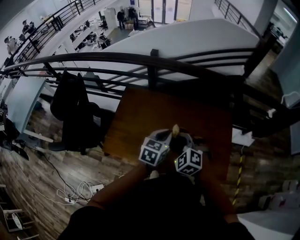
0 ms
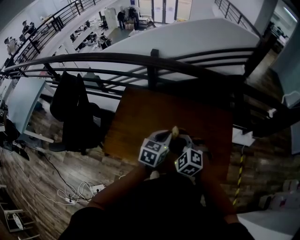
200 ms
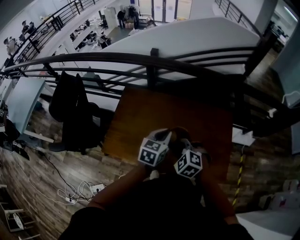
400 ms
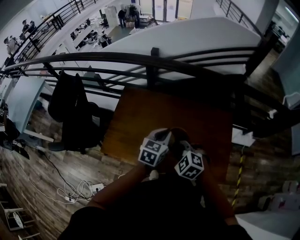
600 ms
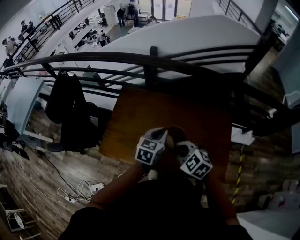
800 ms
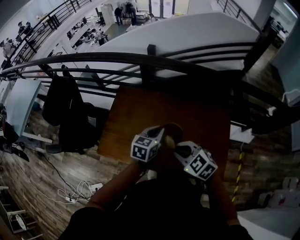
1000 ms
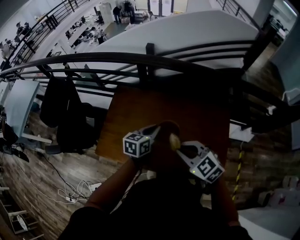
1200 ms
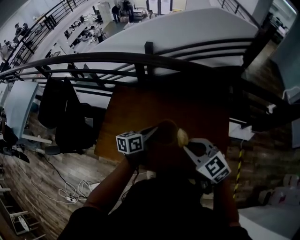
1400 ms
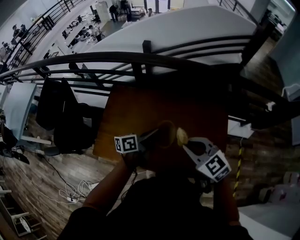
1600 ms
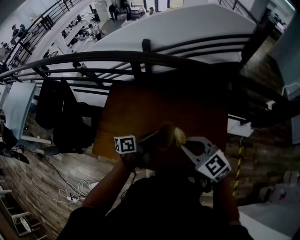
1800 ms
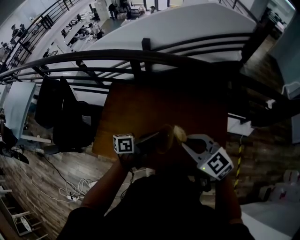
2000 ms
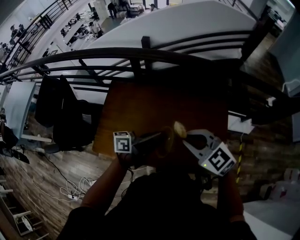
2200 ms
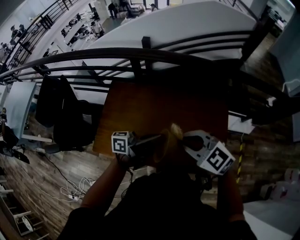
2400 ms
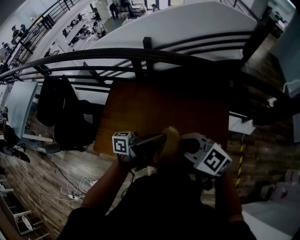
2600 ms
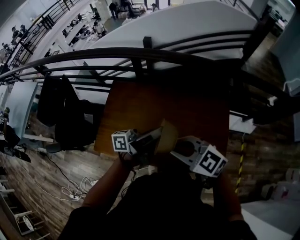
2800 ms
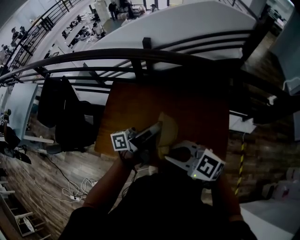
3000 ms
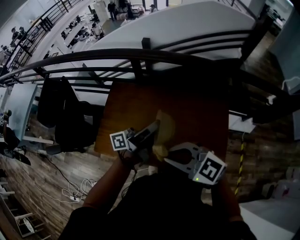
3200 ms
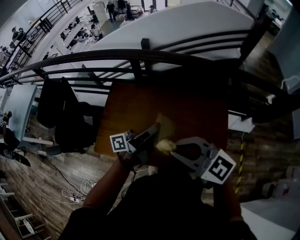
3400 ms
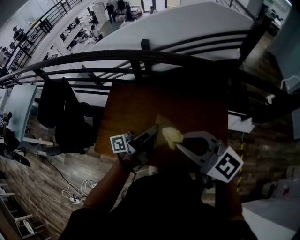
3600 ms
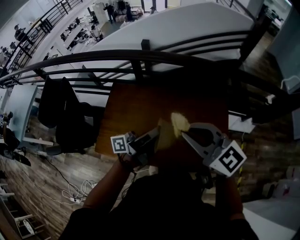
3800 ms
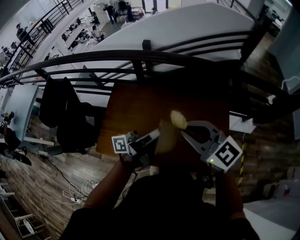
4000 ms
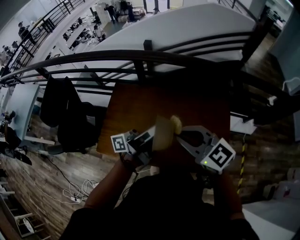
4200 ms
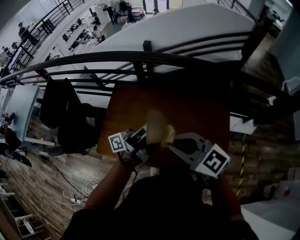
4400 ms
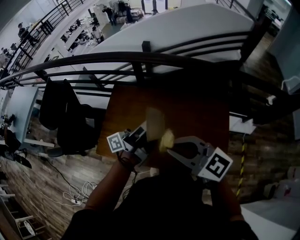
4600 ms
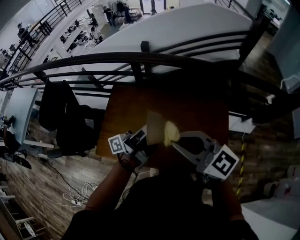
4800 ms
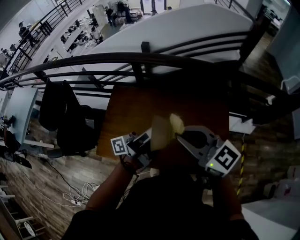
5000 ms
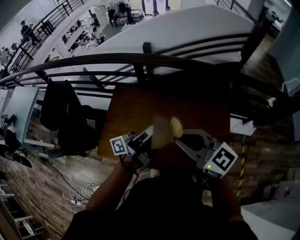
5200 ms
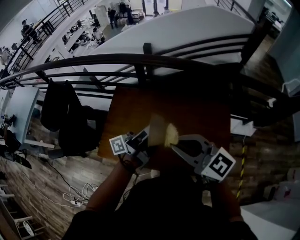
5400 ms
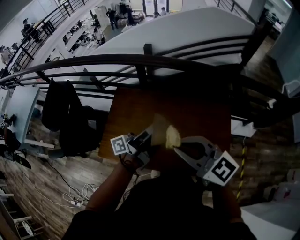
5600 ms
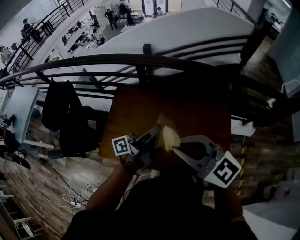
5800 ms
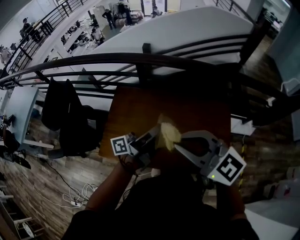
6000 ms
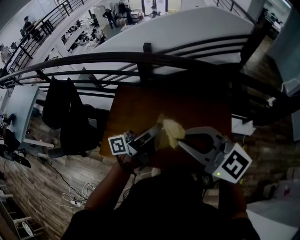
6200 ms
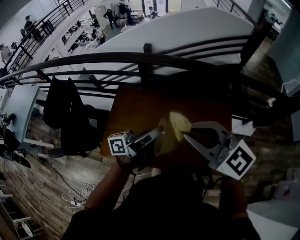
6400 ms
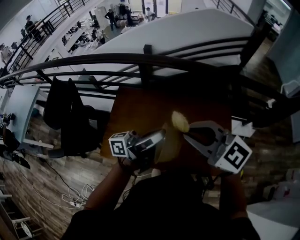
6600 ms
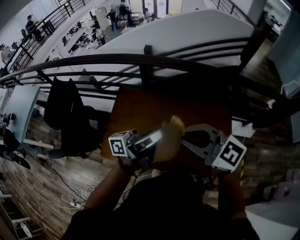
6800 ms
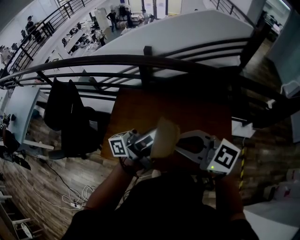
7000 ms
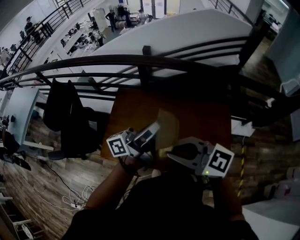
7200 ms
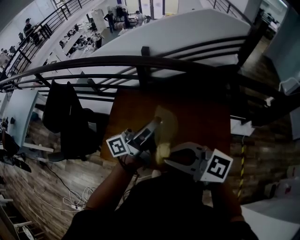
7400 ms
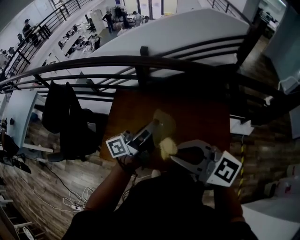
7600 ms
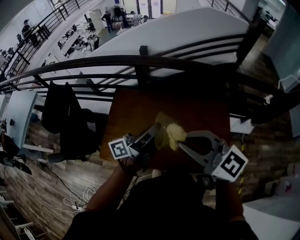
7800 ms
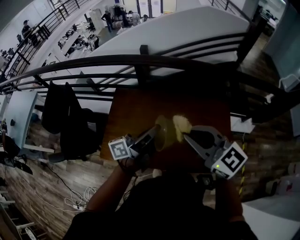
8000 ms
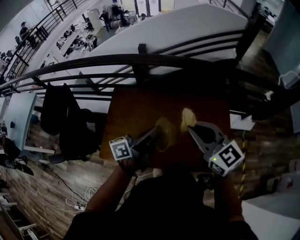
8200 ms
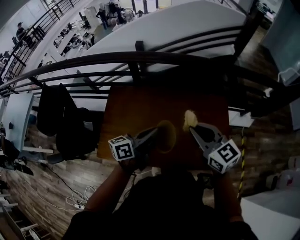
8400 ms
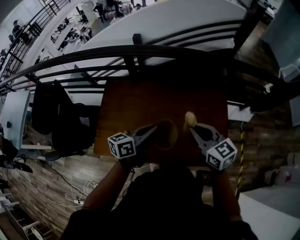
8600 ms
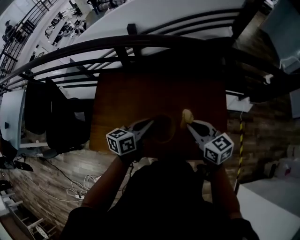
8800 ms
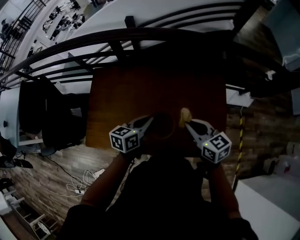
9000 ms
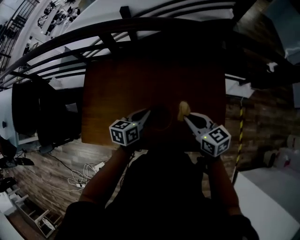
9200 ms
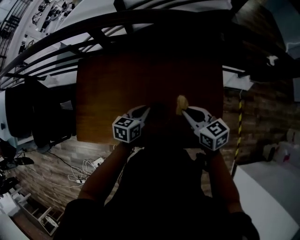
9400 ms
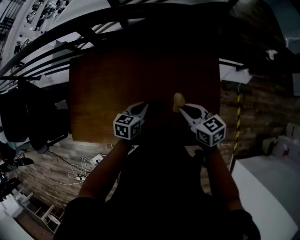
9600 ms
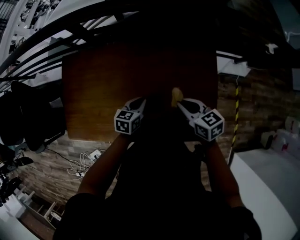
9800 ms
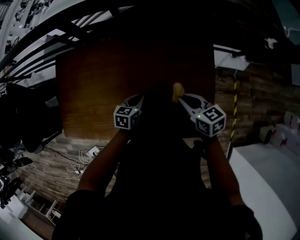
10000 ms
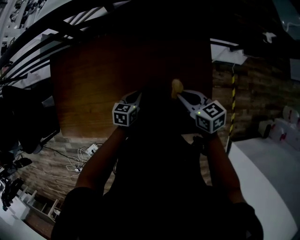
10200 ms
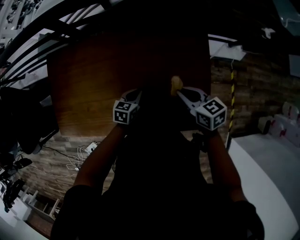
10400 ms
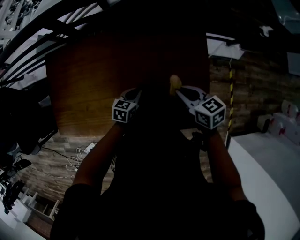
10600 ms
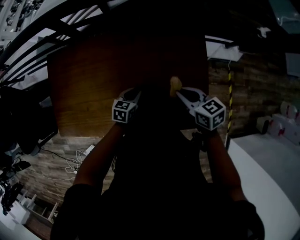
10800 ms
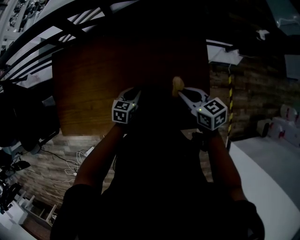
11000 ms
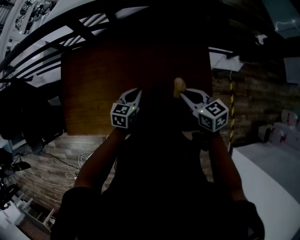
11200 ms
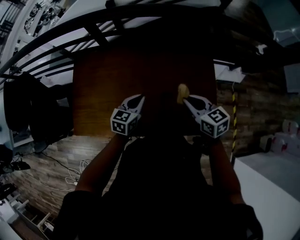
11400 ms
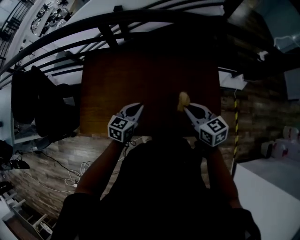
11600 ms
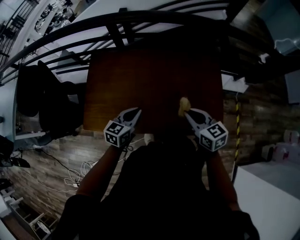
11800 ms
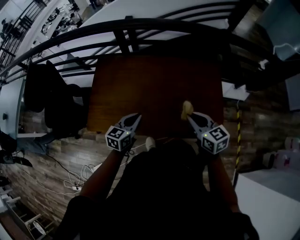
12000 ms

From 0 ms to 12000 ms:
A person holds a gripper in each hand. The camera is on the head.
From 0 ms to 1600 ms: The left gripper travels forward by some 5 cm, and rolls counterclockwise, seen from behind, by some 40 degrees, while the right gripper shifts about 15 cm to the right and upward, and swivels some 30 degrees.
From 1600 ms to 3000 ms: The left gripper is displaced upward by approximately 10 cm, and points its fingers roughly 30 degrees further upward. The right gripper changes place by roughly 10 cm, and turns by roughly 20 degrees.
From 4400 ms to 6000 ms: The right gripper moves upward, some 10 cm.
From 6000 ms to 7600 ms: The left gripper travels upward and back again, approximately 10 cm each way.
From 7600 ms to 9000 ms: The left gripper heads downward and to the right, covering roughly 25 cm, and points its fingers roughly 50 degrees further downward; the right gripper heads downward, to the right and forward, covering some 30 cm, and swivels roughly 40 degrees.
From 9000 ms to 10400 ms: The right gripper moves to the right and downward, some 20 cm, while the left gripper heads downward and to the right, covering some 30 cm, and changes its angle by approximately 20 degrees.
From 10400 ms to 12000 ms: The right gripper heads backward, to the left and upward, covering approximately 25 cm. Meanwhile the left gripper goes some 35 cm upward, to the left and backward, and changes its angle by roughly 20 degrees.

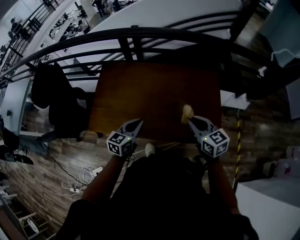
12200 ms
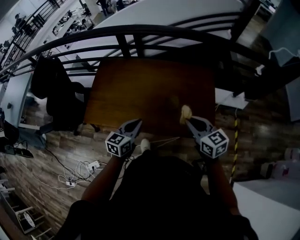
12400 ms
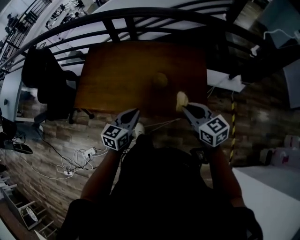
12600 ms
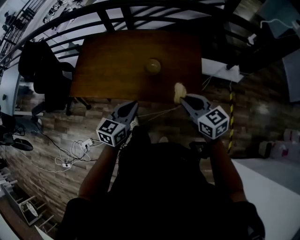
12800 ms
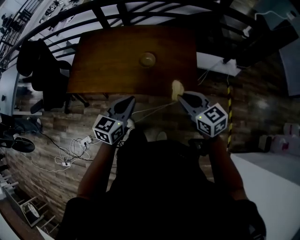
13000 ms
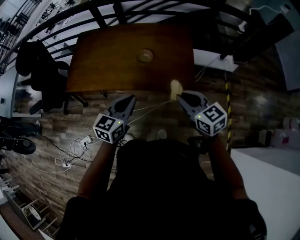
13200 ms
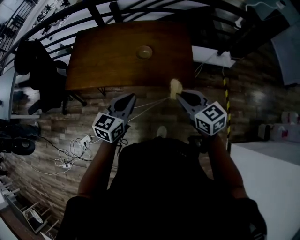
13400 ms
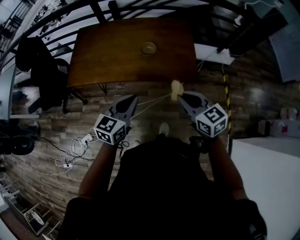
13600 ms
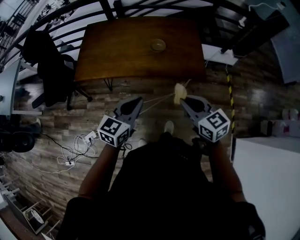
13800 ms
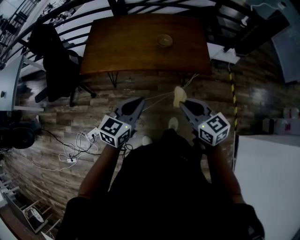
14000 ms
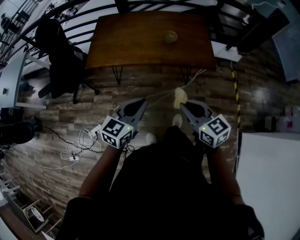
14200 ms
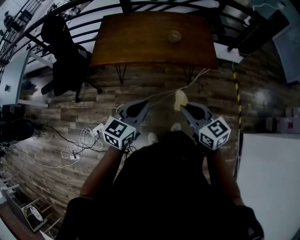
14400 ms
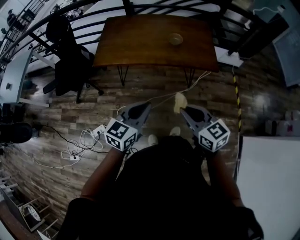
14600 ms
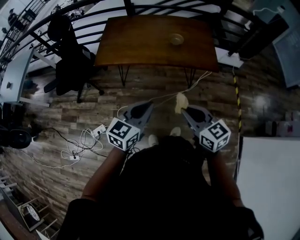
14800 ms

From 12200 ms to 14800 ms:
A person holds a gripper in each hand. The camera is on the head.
From 12200 ms to 13400 ms: Both grippers move backward and to the right, about 30 cm.
From 13400 ms to 14800 ms: Both grippers travel together backward and to the left, about 35 cm.

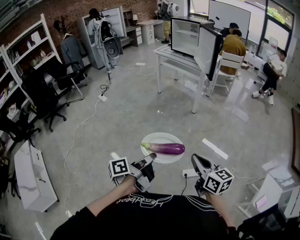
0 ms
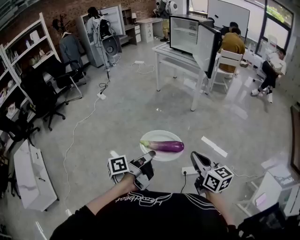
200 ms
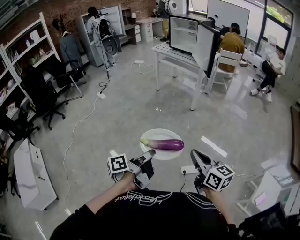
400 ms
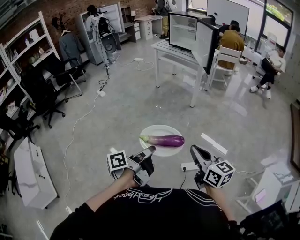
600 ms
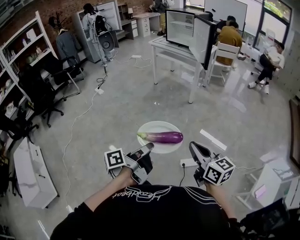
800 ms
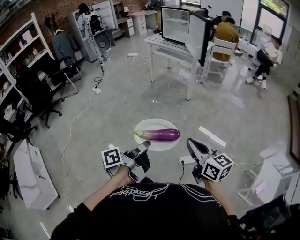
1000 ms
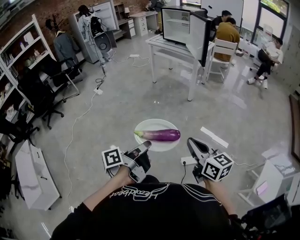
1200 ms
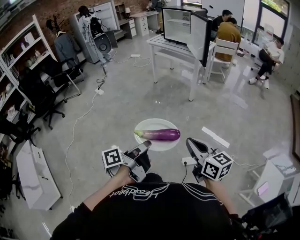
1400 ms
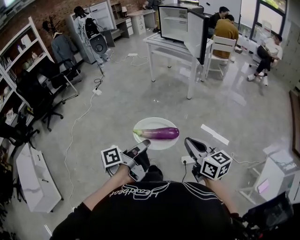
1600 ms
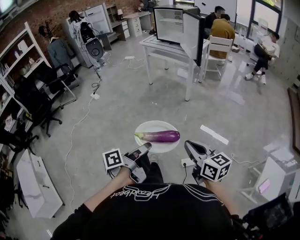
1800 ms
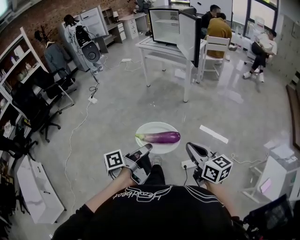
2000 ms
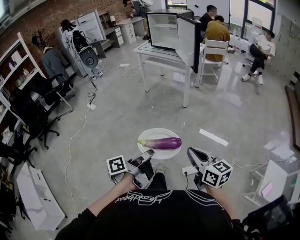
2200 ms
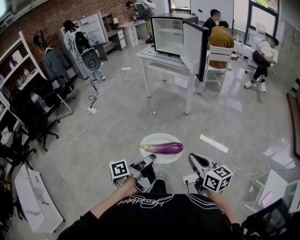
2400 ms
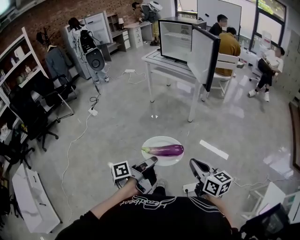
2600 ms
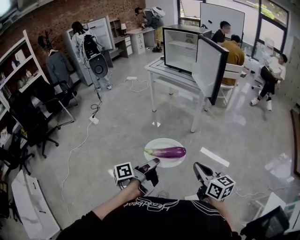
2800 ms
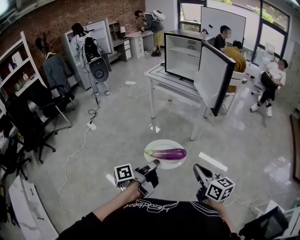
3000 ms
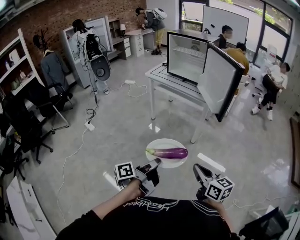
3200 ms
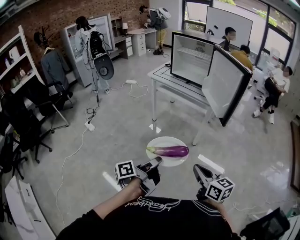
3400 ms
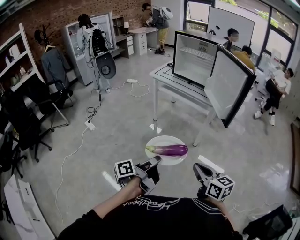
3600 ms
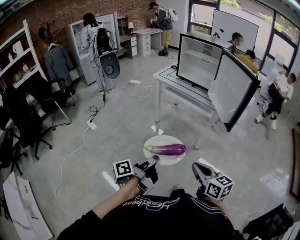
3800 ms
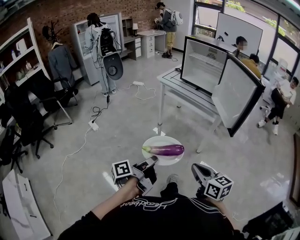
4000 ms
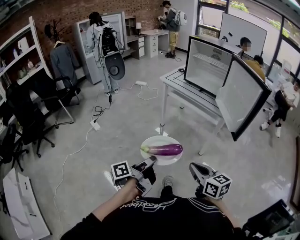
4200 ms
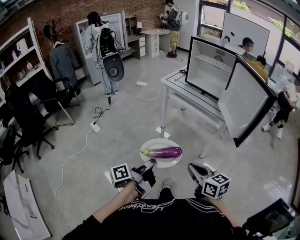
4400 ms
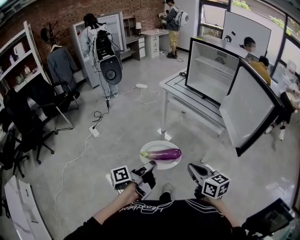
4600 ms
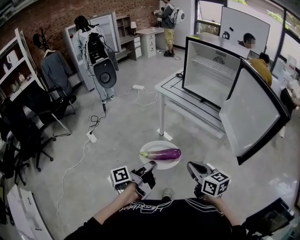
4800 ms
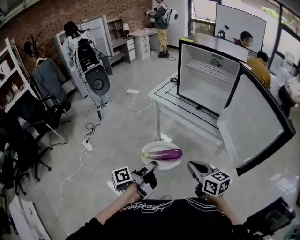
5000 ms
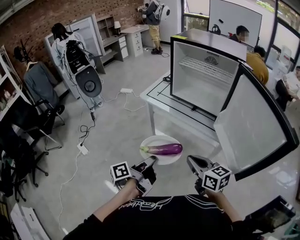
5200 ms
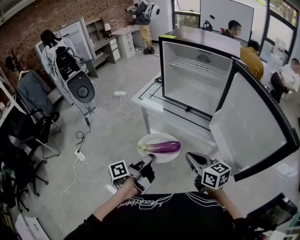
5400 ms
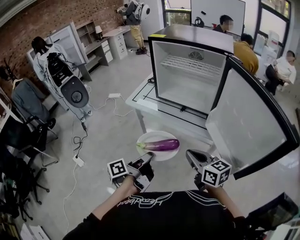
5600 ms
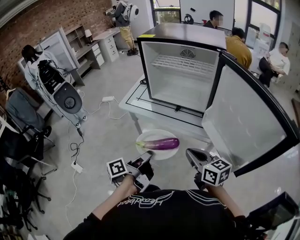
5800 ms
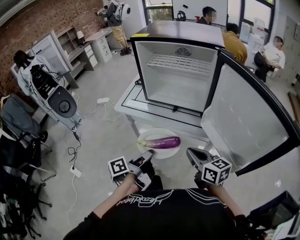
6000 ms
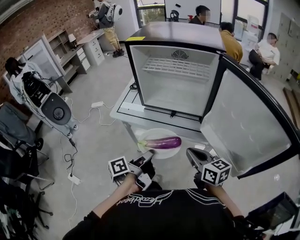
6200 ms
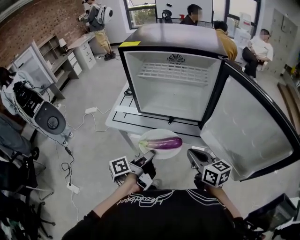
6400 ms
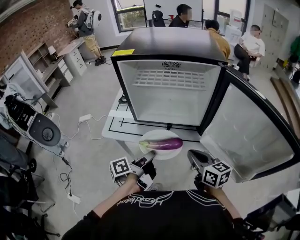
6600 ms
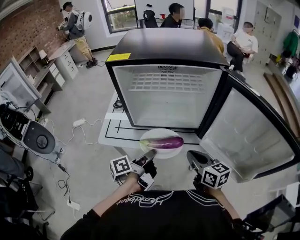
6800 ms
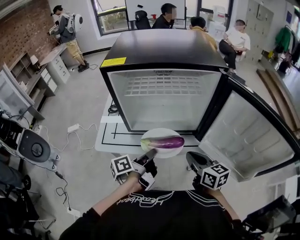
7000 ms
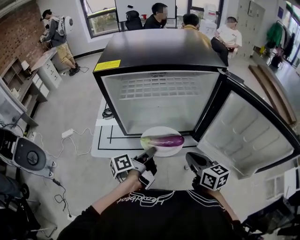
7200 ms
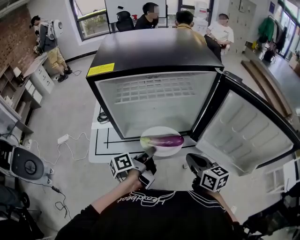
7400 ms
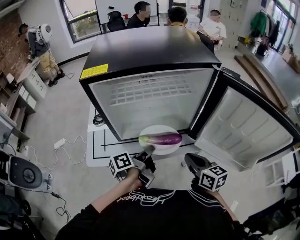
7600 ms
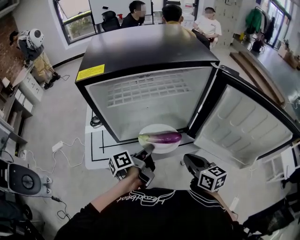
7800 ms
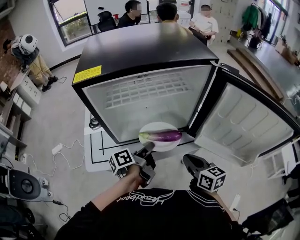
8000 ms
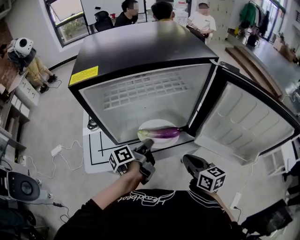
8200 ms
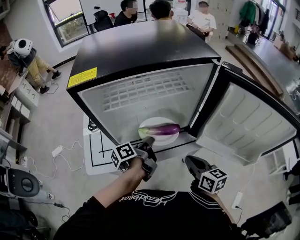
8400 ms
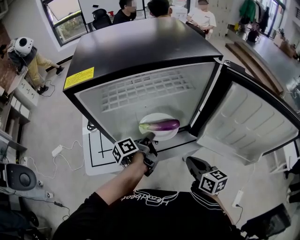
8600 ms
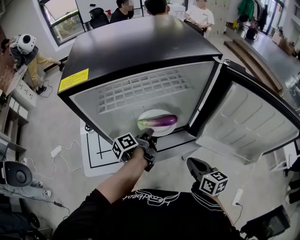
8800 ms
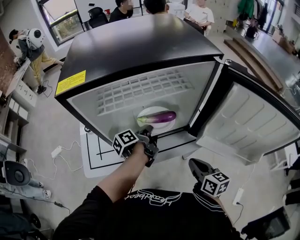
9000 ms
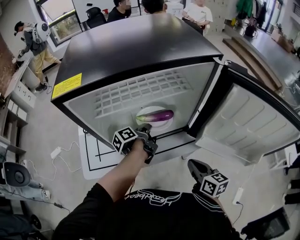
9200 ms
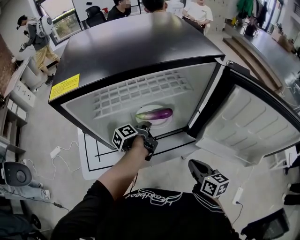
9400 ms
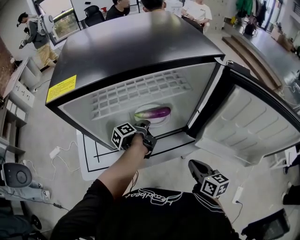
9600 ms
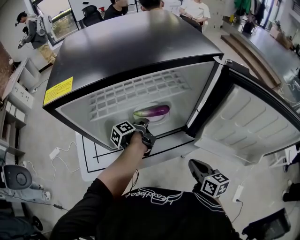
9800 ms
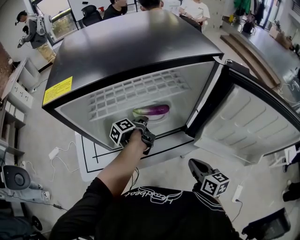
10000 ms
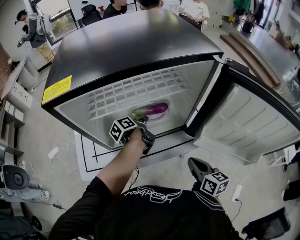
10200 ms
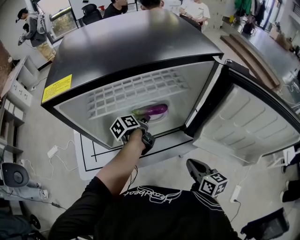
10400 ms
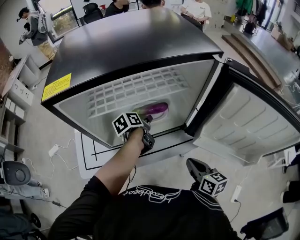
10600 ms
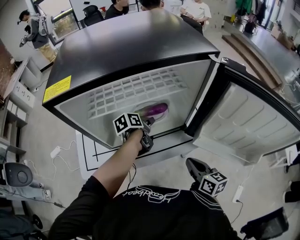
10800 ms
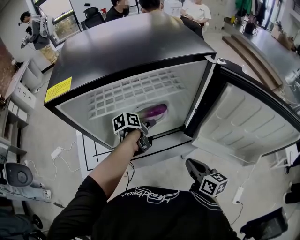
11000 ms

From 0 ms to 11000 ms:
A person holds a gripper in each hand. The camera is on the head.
From 1600 ms to 3200 ms: The right gripper moves roughly 40 cm.
From 3200 ms to 4800 ms: The right gripper shifts by approximately 35 cm.
From 4800 ms to 6200 ms: The right gripper changes place by about 30 cm, and turns by approximately 20 degrees.
From 6200 ms to 7800 ms: The right gripper shifts by some 10 cm, and rotates roughly 30 degrees.
From 7800 ms to 9400 ms: The right gripper heads downward, covering roughly 5 cm.
